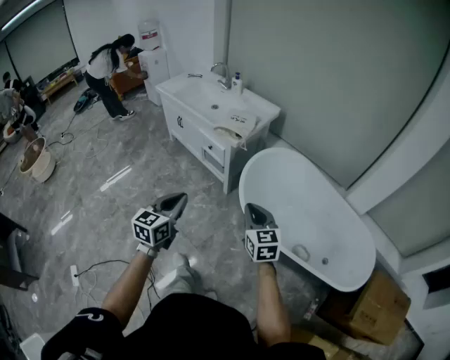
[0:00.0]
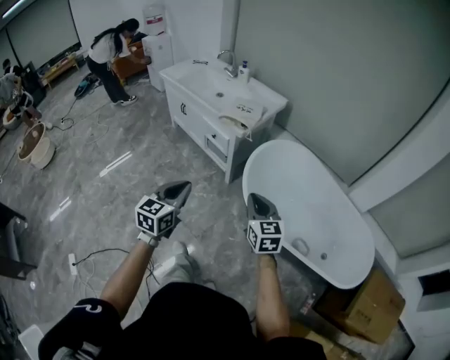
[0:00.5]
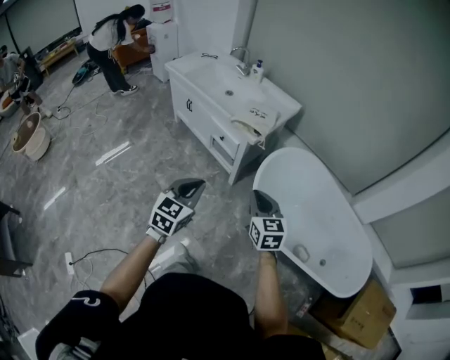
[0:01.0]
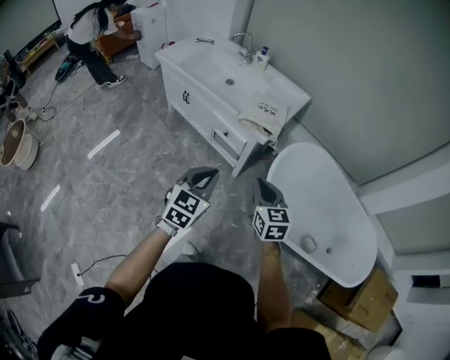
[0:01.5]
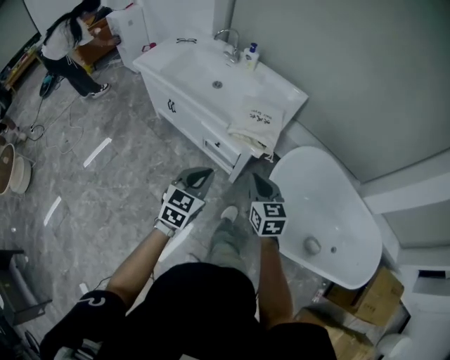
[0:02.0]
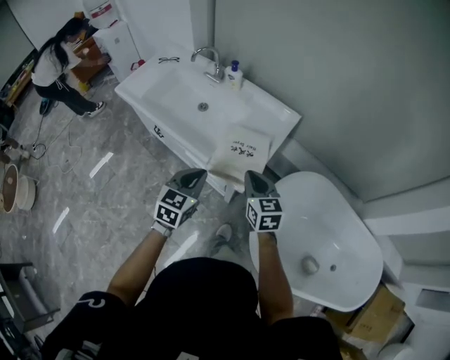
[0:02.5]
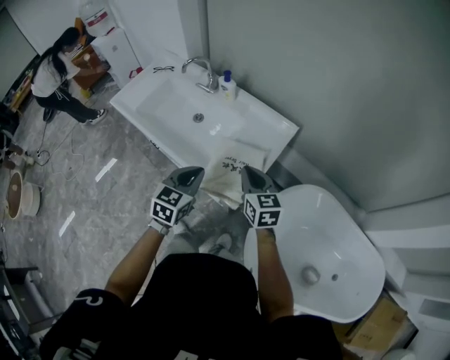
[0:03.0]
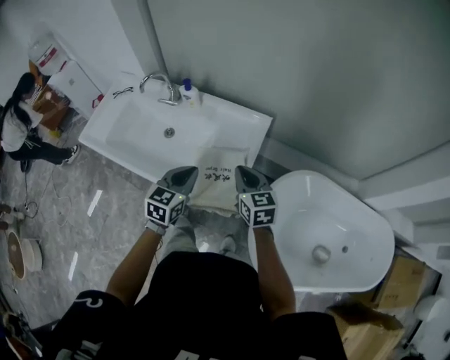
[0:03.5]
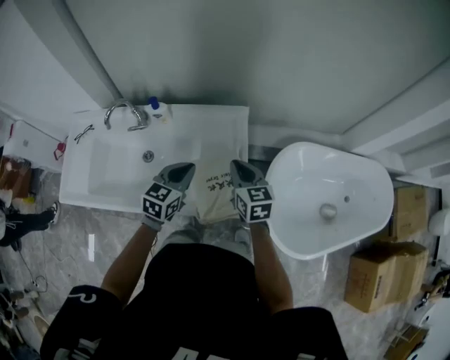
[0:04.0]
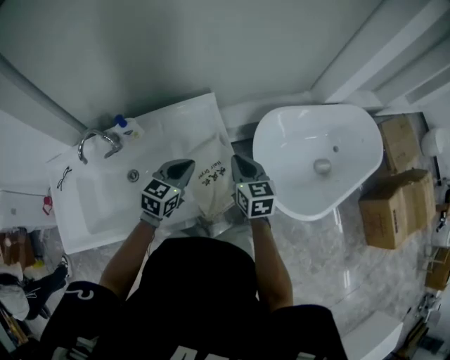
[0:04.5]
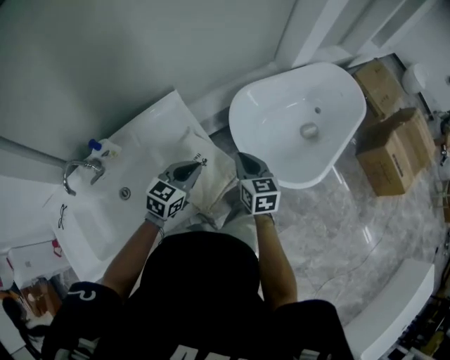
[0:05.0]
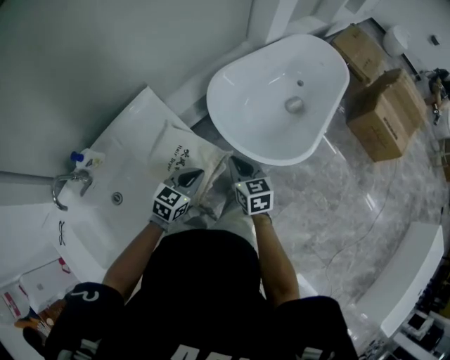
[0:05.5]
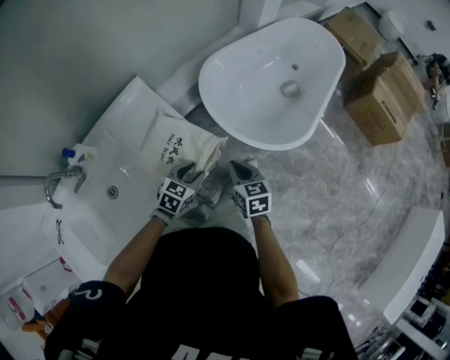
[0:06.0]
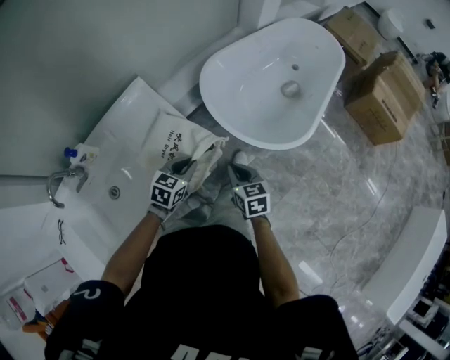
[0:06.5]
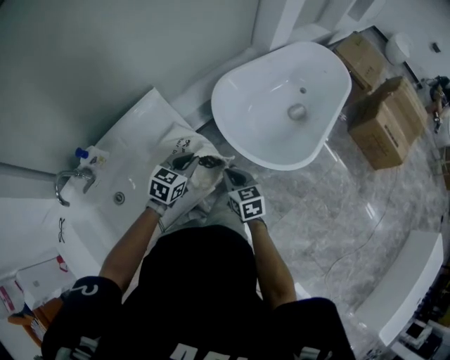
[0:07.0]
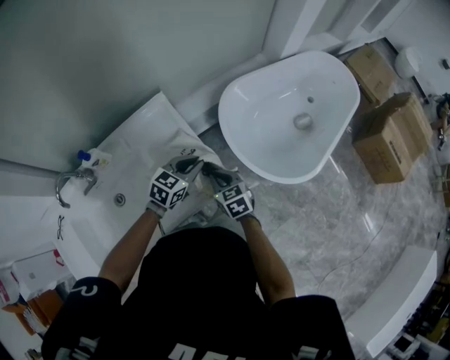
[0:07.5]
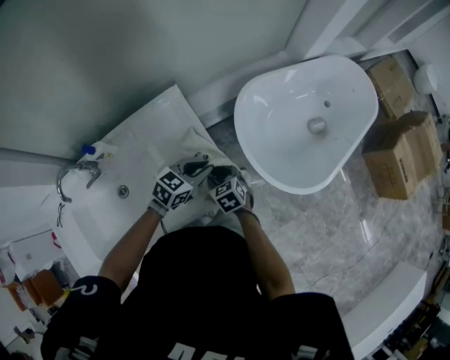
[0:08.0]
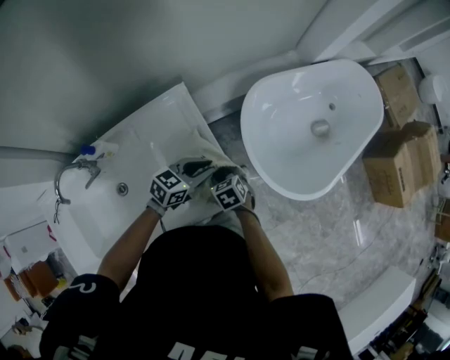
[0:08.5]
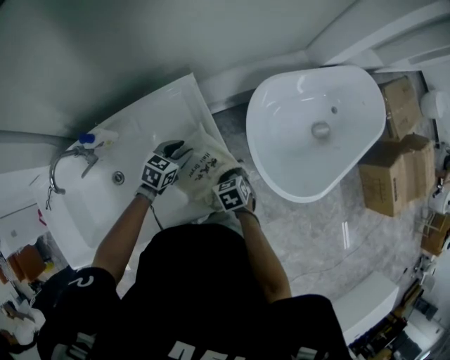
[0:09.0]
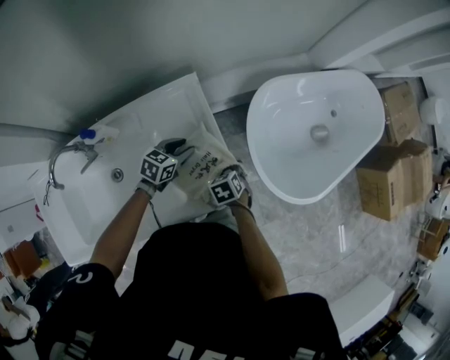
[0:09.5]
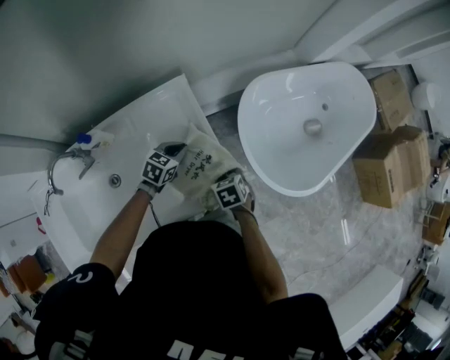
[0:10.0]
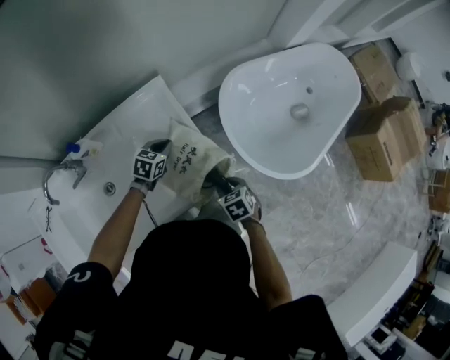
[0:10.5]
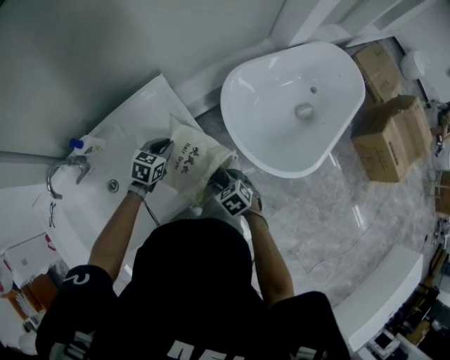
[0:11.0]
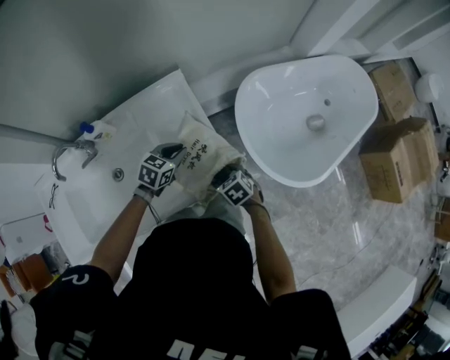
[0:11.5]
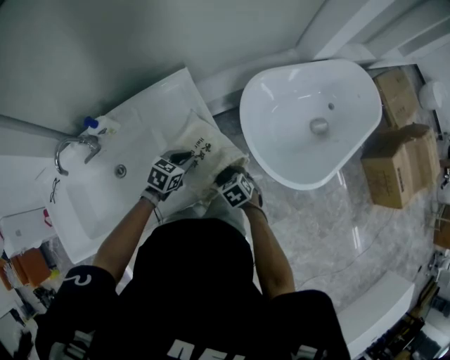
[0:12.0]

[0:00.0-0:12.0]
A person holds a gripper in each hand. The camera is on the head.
0:00.0 to 0:02.0: The pair of grippers is taken forward and to the left, roughly 40 cm. The left gripper swivels roughly 20 degrees.
0:02.0 to 0:04.0: The right gripper ends up approximately 40 cm from where it was, and changes its angle by some 30 degrees; the left gripper shifts by about 50 cm, and changes its angle by roughly 40 degrees.
0:04.0 to 0:06.0: The left gripper moves roughly 25 cm, turns by some 50 degrees, and opens. Meanwhile the right gripper changes place by approximately 30 cm, and rotates approximately 40 degrees.
0:06.0 to 0:08.0: The right gripper goes some 20 cm to the left, forward and downward, rotates roughly 40 degrees, and opens up; the left gripper is displaced forward, upward and to the left by some 15 cm, and closes.
0:08.0 to 0:10.0: The left gripper heads to the left, downward and forward, covering about 15 cm, and opens, then closes once more.
0:10.0 to 0:12.0: The two grippers go some 5 cm backward.

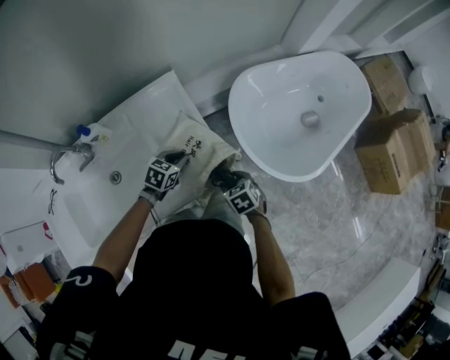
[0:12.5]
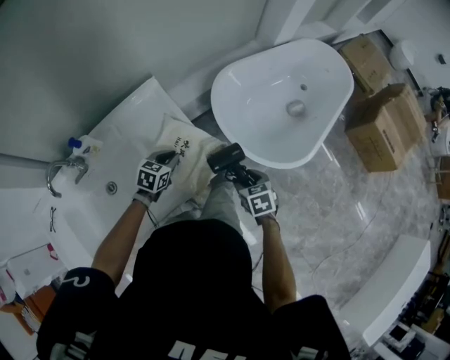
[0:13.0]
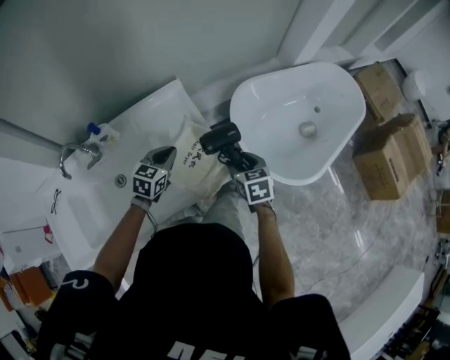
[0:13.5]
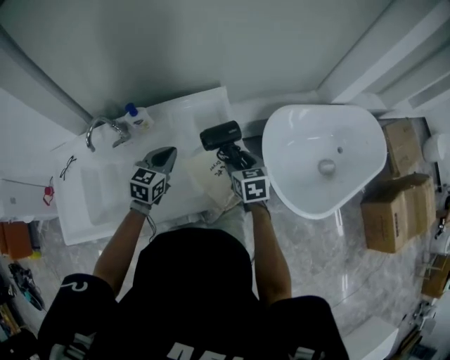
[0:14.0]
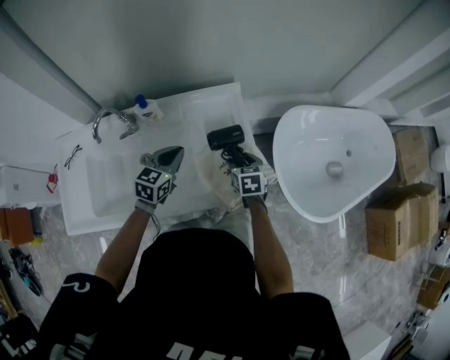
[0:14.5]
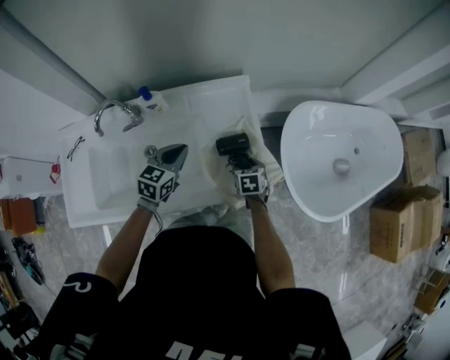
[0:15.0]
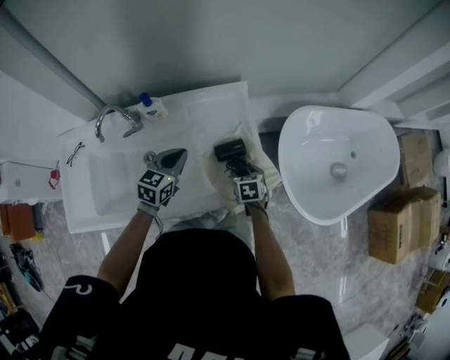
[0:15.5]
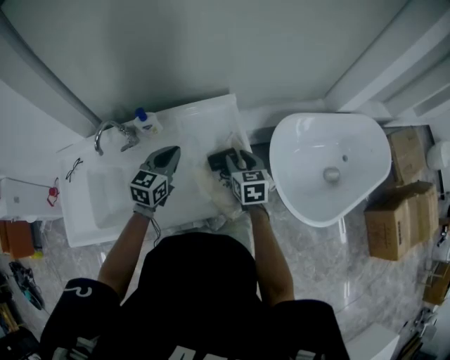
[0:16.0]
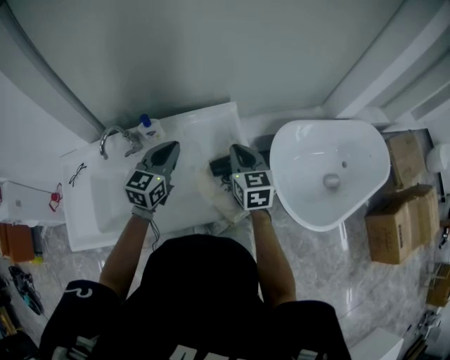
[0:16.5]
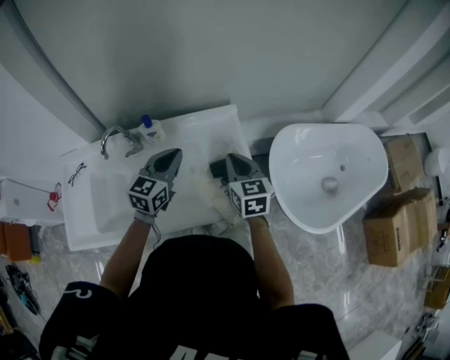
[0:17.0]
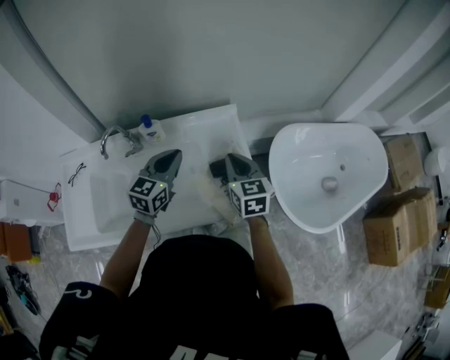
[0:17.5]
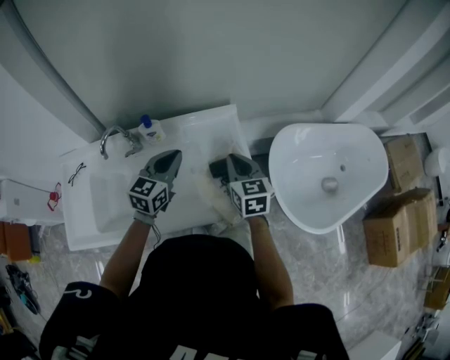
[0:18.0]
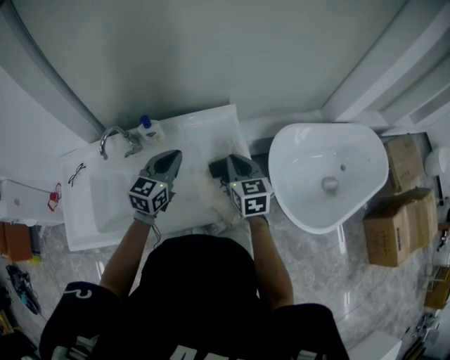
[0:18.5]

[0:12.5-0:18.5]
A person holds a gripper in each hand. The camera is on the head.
0:12.5 to 0:14.5: The left gripper is displaced to the left and upward by some 20 cm, and changes its angle by some 30 degrees, while the right gripper moves to the left, forward and upward, approximately 20 cm.
0:14.5 to 0:16.5: The left gripper shifts some 10 cm upward. The right gripper heads upward, covering about 20 cm, rotates approximately 30 degrees, and closes up.
0:16.5 to 0:18.5: The grippers stay close to where they were, moving slightly.

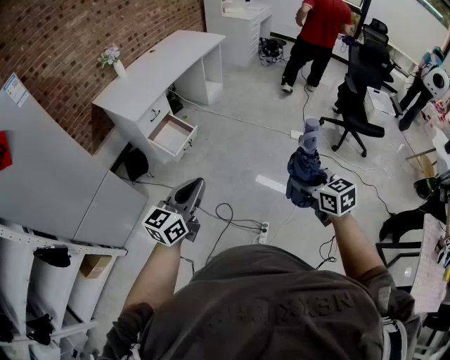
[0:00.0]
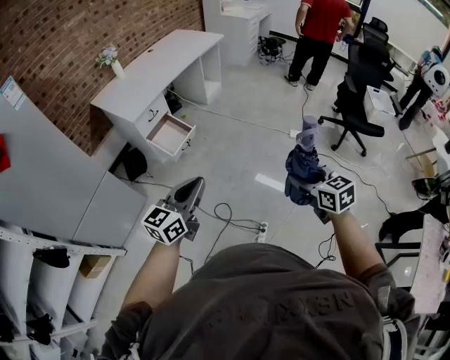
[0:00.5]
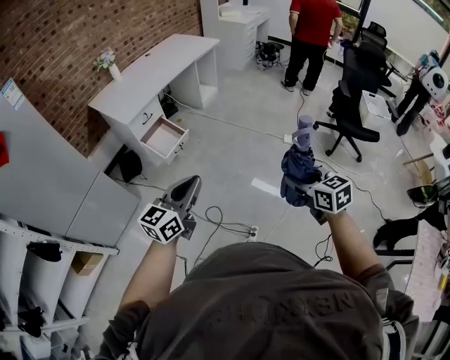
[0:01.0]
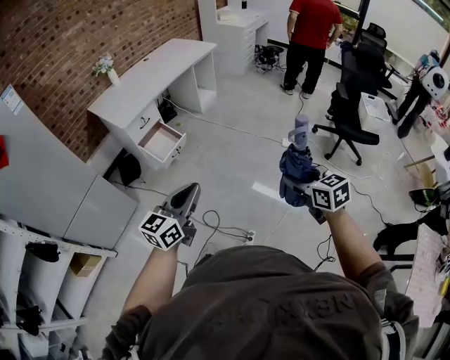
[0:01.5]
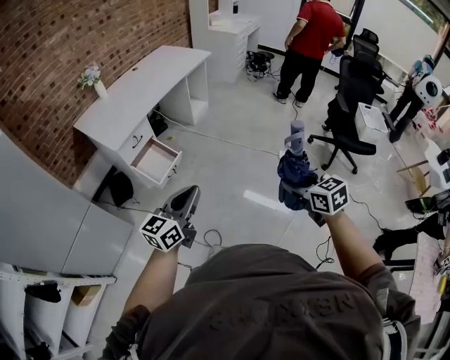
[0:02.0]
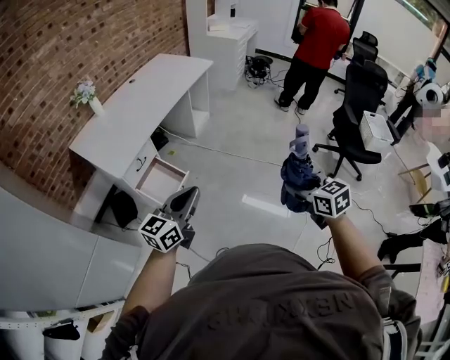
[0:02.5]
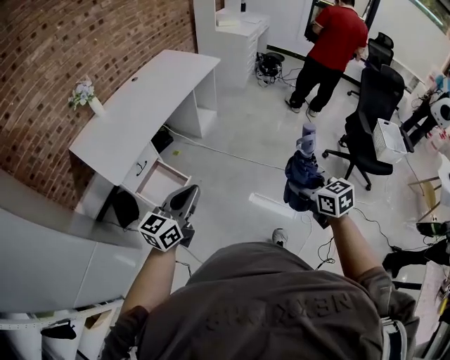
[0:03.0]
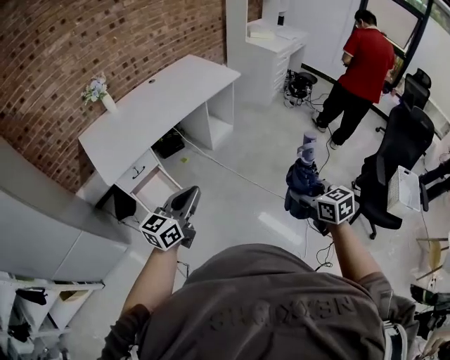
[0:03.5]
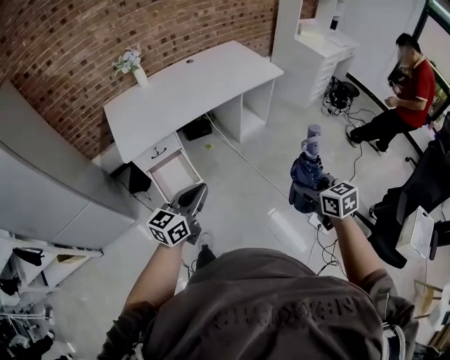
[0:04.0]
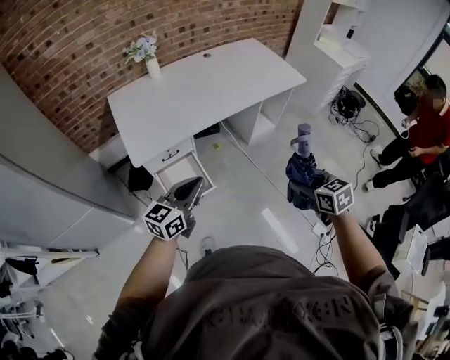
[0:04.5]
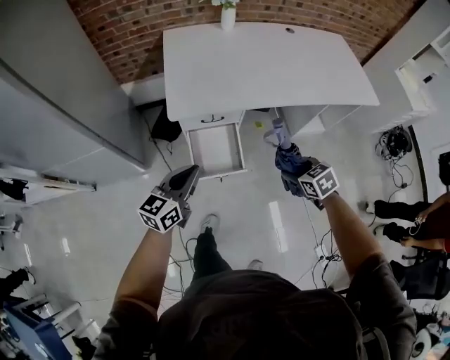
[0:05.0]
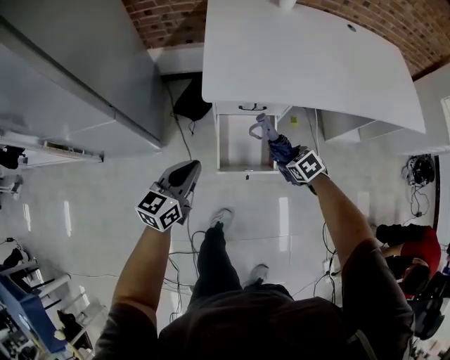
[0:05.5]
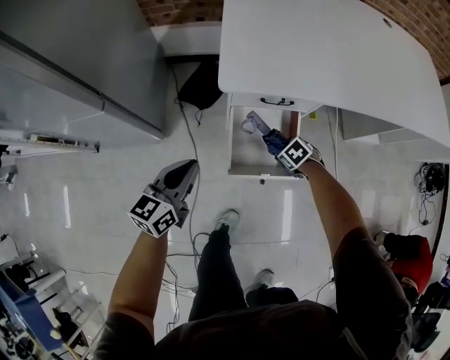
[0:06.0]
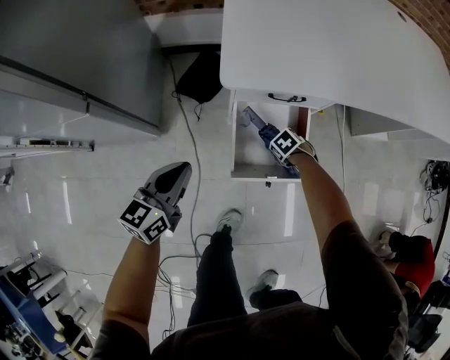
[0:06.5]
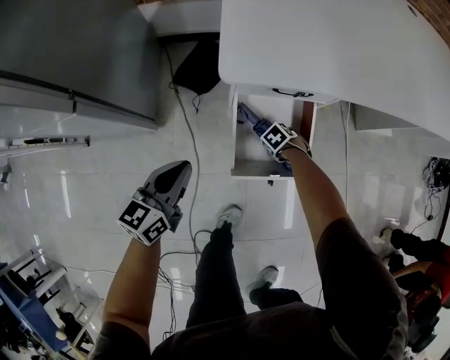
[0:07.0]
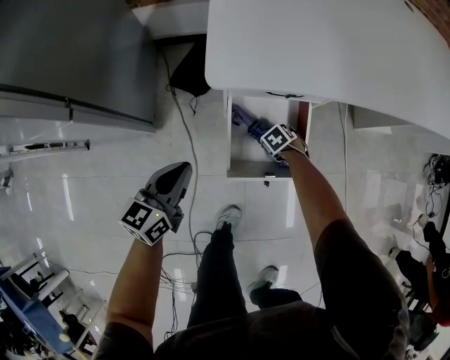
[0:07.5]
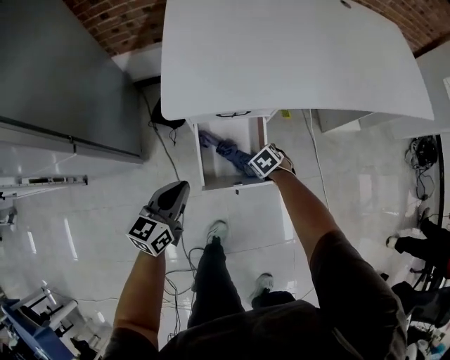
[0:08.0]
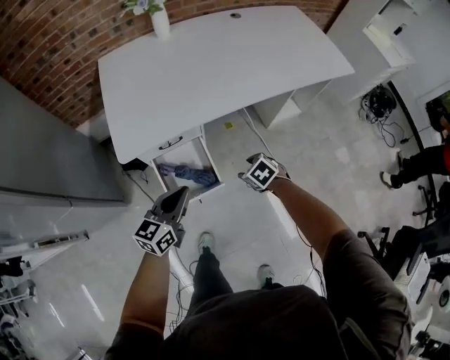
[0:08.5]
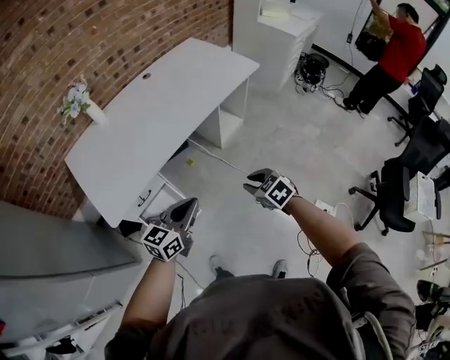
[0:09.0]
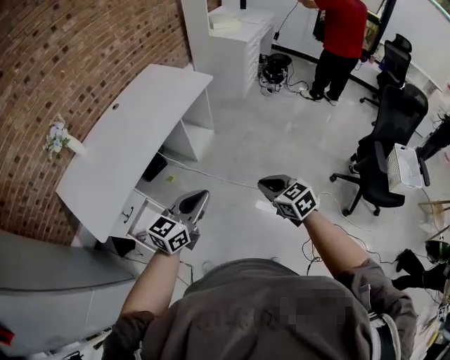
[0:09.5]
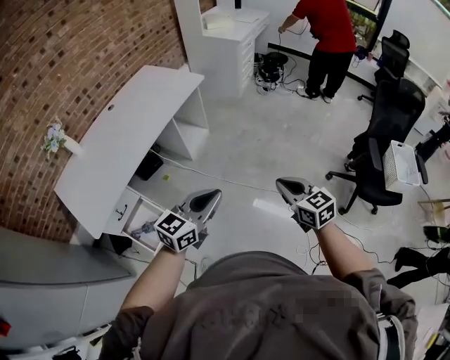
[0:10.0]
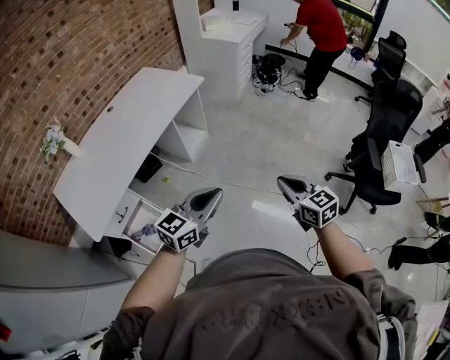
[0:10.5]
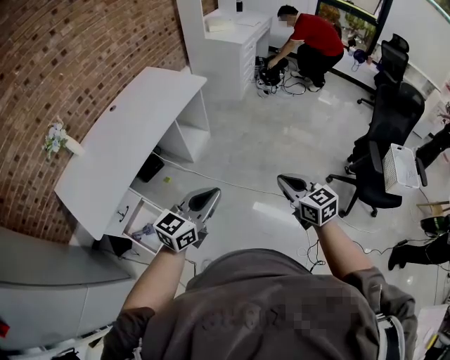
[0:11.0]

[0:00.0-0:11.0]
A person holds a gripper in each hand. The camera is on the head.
0:00.0 to 0:02.0: The grippers both shift forward by about 15 cm.
0:02.0 to 0:03.5: The grippers both shift forward by some 40 cm.
0:03.5 to 0:05.5: Both grippers are carried roughly 50 cm. The right gripper angles its fingers downward, by approximately 40 degrees; the left gripper changes its angle by some 50 degrees.
0:05.5 to 0:07.5: The left gripper shifts approximately 20 cm downward. Meanwhile the right gripper heads downward, covering some 30 cm.
0:07.5 to 0:09.0: Both grippers are carried roughly 40 cm. The right gripper moves upward, roughly 60 cm, tips its fingers upward by roughly 30 degrees, and closes. Meanwhile the left gripper swivels roughly 50 degrees.
0:09.0 to 0:11.0: Both grippers travel together to the right and upward, some 35 cm. The right gripper swivels some 40 degrees. Meanwhile the left gripper changes its angle by some 20 degrees.
